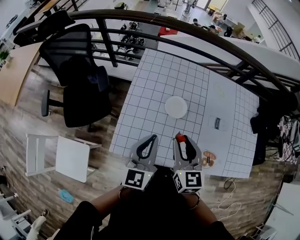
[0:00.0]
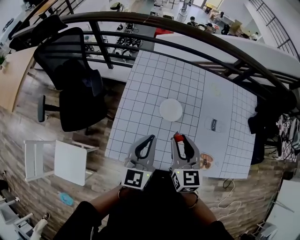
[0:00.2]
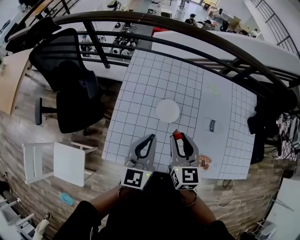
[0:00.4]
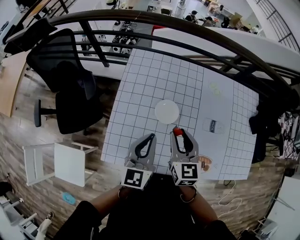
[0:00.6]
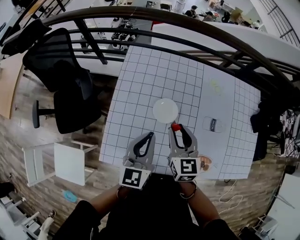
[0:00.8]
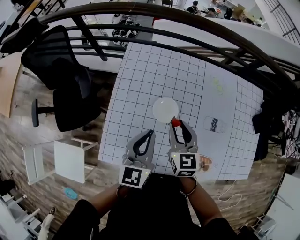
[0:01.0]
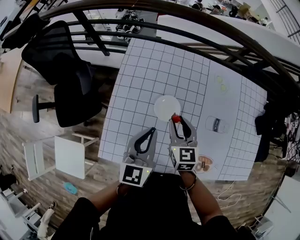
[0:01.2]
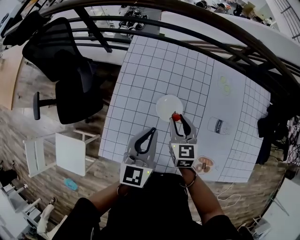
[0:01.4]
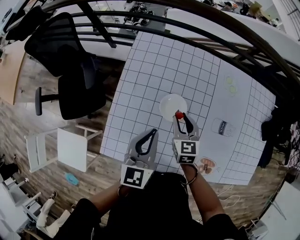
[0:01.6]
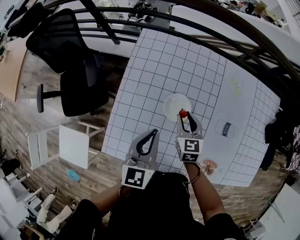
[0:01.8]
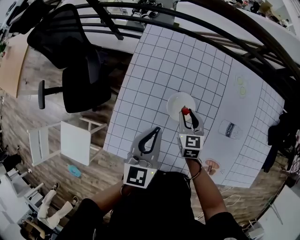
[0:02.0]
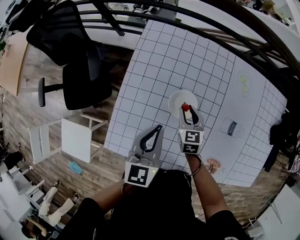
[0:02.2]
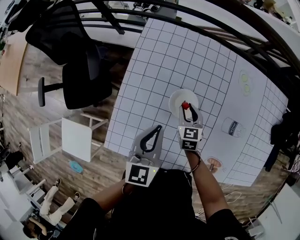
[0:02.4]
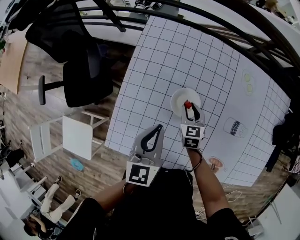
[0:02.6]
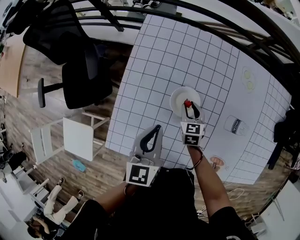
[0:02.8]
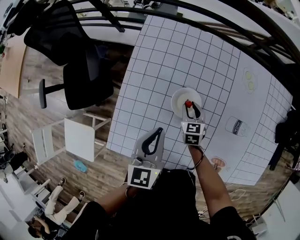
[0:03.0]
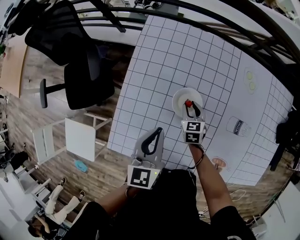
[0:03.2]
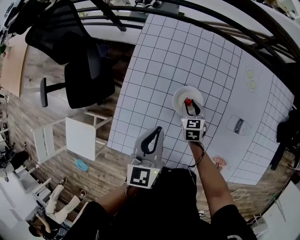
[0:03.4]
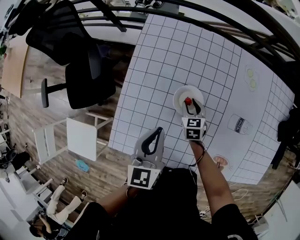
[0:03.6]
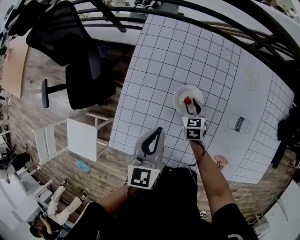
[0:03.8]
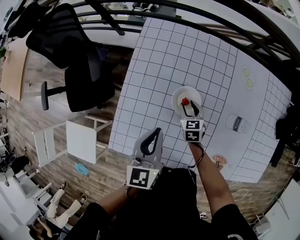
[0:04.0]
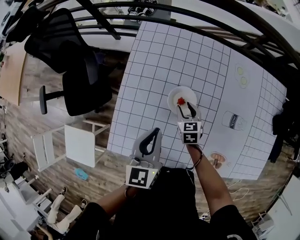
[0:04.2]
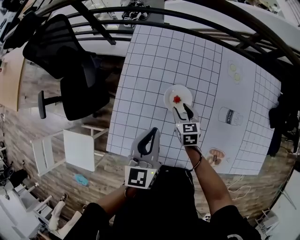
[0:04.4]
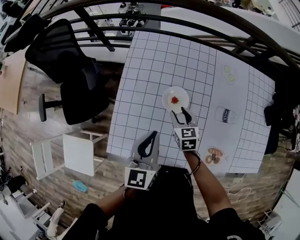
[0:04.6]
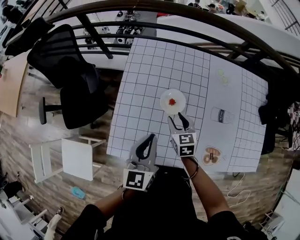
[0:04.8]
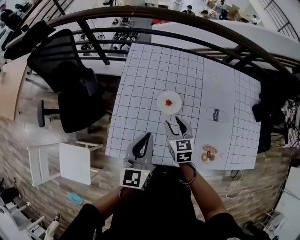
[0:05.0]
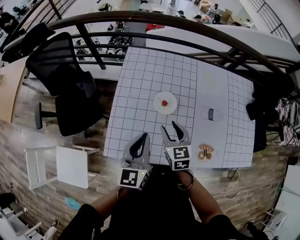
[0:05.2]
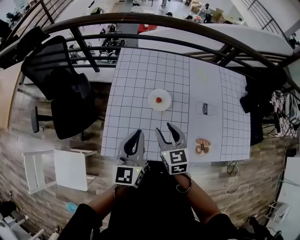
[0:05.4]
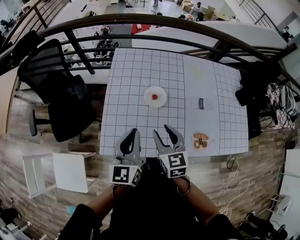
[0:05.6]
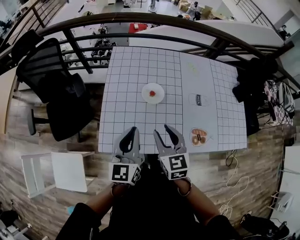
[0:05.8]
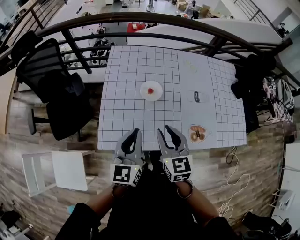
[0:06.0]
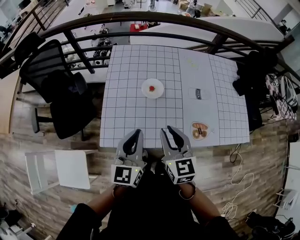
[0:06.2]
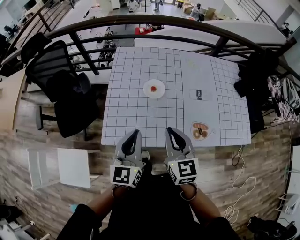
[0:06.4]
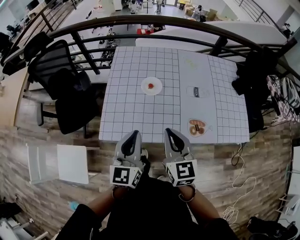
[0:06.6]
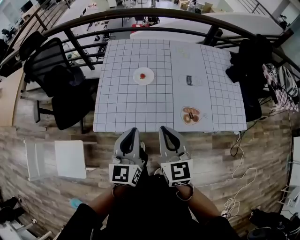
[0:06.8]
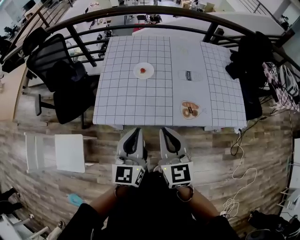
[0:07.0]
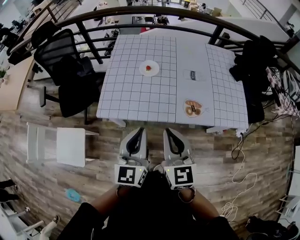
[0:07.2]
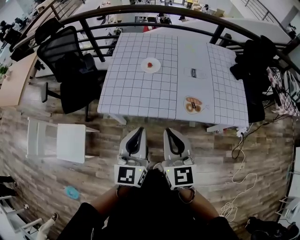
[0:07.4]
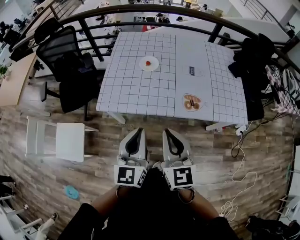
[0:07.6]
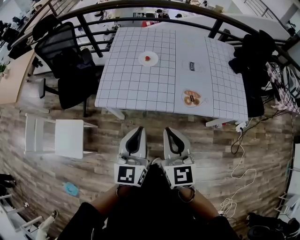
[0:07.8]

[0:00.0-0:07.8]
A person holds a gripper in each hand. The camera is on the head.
0:00.0 to 0:01.6: The right gripper goes approximately 25 cm forward and downward. Meanwhile the left gripper shifts some 15 cm forward, downward and to the right.
0:01.6 to 0:03.2: The left gripper goes some 5 cm downward; the right gripper travels downward by some 15 cm.
0:03.2 to 0:04.6: The right gripper is displaced upward and backward by some 10 cm. The left gripper travels backward and upward by roughly 10 cm.
0:04.6 to 0:06.2: The left gripper goes some 20 cm backward and upward, while the right gripper is displaced backward and upward by approximately 35 cm, rotates roughly 20 degrees, and closes its fingers.
0:06.2 to 0:07.8: Both grippers move backward, some 25 cm. The right gripper closes its fingers.

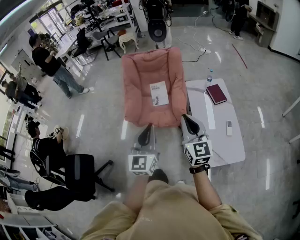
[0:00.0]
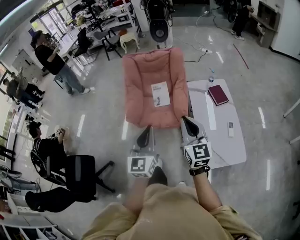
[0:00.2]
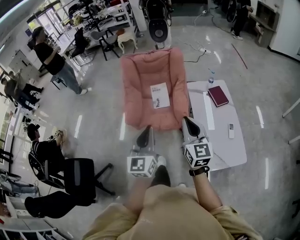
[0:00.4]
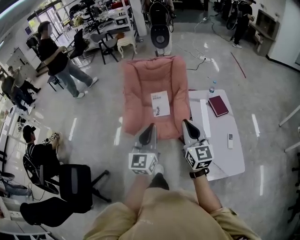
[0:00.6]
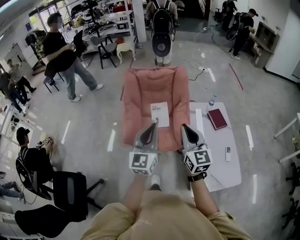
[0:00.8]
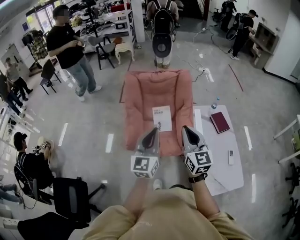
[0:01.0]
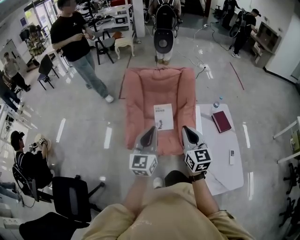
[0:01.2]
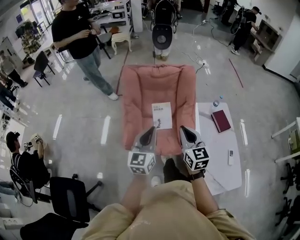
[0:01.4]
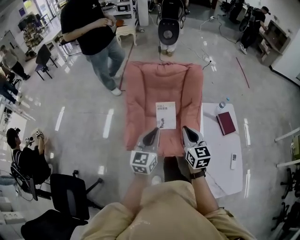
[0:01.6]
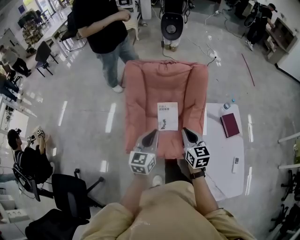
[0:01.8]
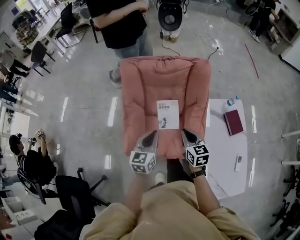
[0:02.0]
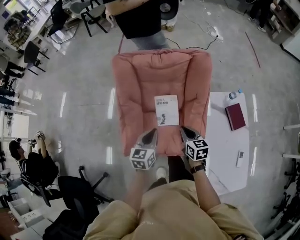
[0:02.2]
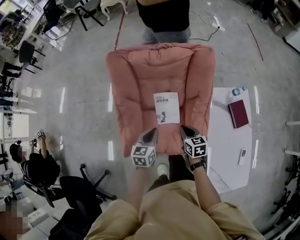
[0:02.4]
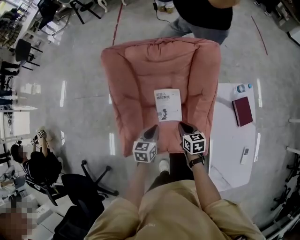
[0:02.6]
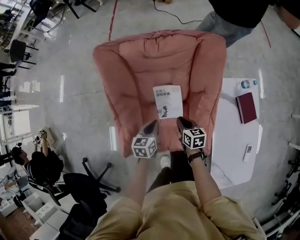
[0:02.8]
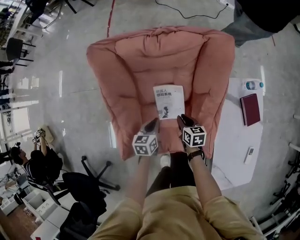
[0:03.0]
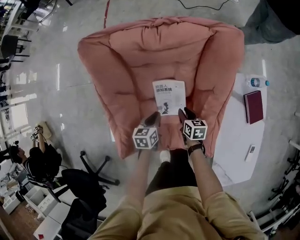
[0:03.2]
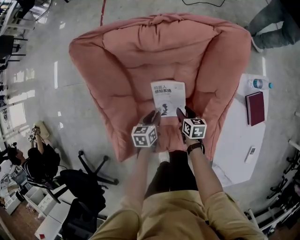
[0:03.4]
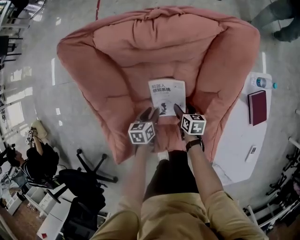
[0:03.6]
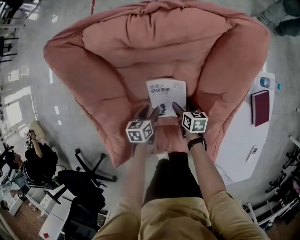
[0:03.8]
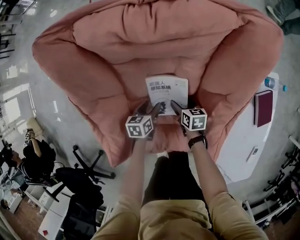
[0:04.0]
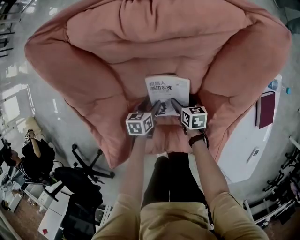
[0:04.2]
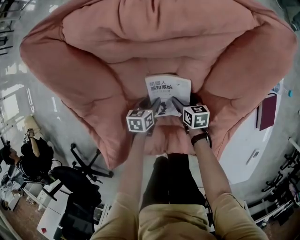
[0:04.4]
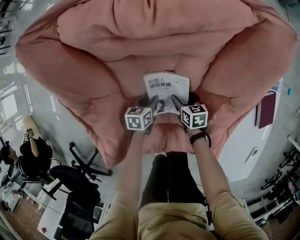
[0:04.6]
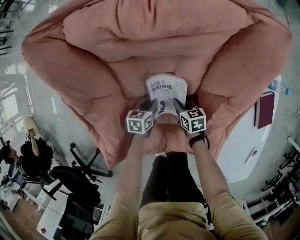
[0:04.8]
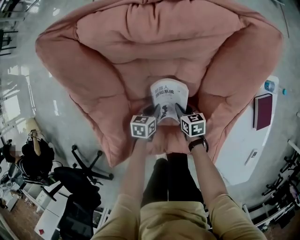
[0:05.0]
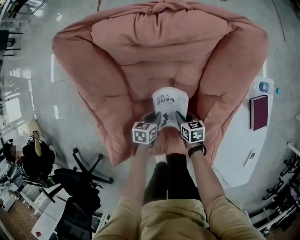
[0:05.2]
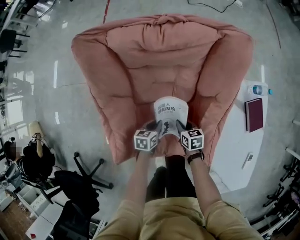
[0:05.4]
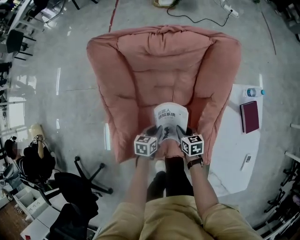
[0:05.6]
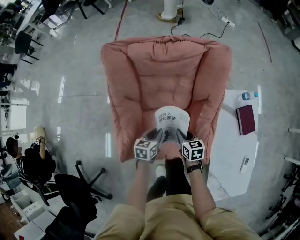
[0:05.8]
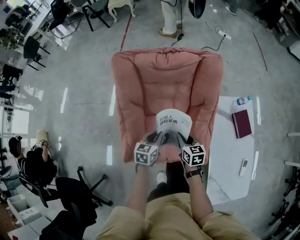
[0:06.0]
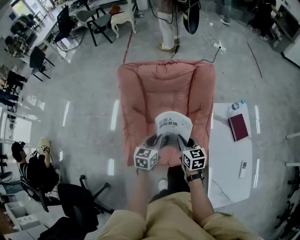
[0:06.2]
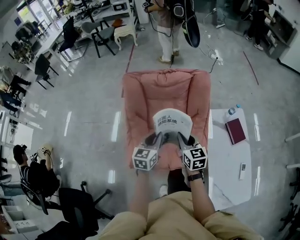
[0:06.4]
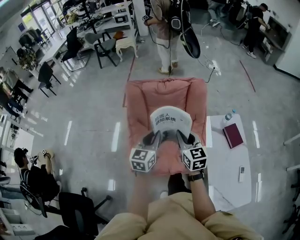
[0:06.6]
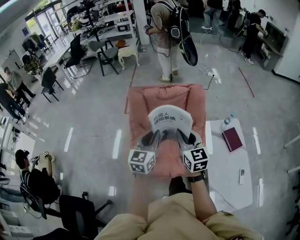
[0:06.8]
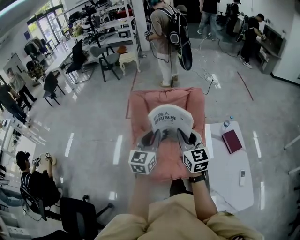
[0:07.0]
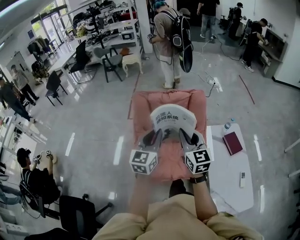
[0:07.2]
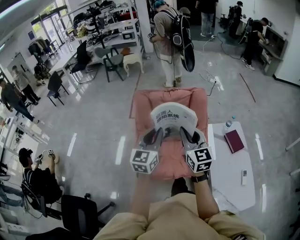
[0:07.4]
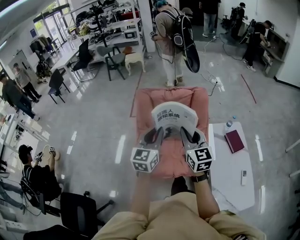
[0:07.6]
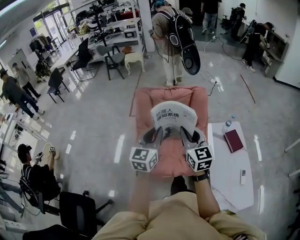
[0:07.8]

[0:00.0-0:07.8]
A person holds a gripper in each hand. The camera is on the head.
0:00.0 to 0:01.6: Both grippers move forward and to the left, approximately 40 cm.
0:01.6 to 0:03.2: Both grippers travel together downward and forward, some 50 cm. The right gripper points its fingers approximately 30 degrees further downward; the left gripper tilts its fingers some 40 degrees downward.
0:03.2 to 0:04.6: The two grippers go about 20 cm downward. The left gripper opens up.
0:04.6 to 0:06.2: The right gripper goes some 50 cm upward and backward, changes its angle by some 30 degrees, and closes its fingers. The left gripper travels upward by approximately 40 cm, swivels some 30 degrees, and closes up.
0:06.2 to 0:07.8: Both grippers move upward and backward, roughly 30 cm. The left gripper swivels some 30 degrees. The right gripper swivels some 30 degrees.

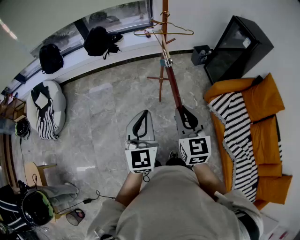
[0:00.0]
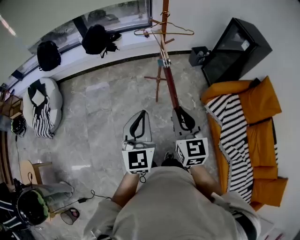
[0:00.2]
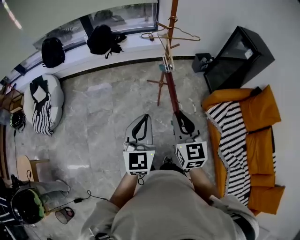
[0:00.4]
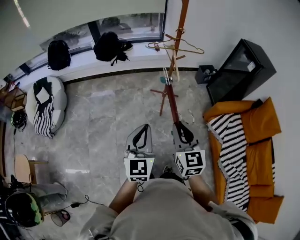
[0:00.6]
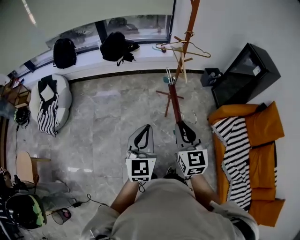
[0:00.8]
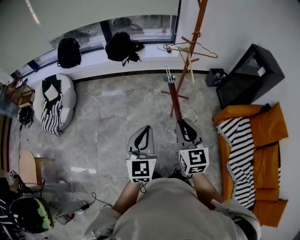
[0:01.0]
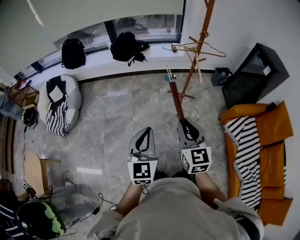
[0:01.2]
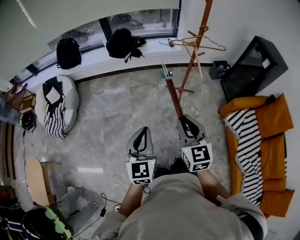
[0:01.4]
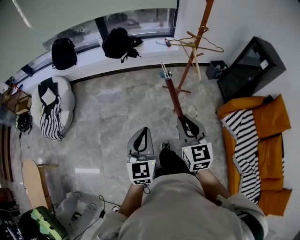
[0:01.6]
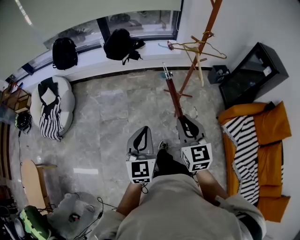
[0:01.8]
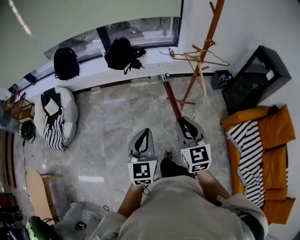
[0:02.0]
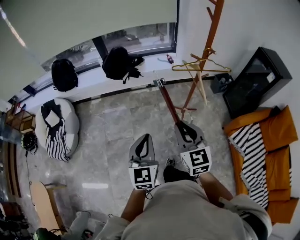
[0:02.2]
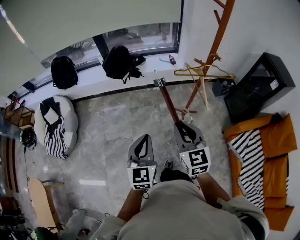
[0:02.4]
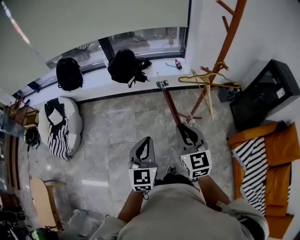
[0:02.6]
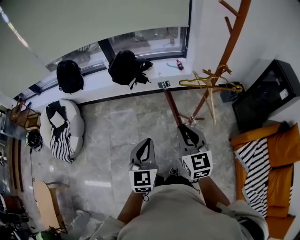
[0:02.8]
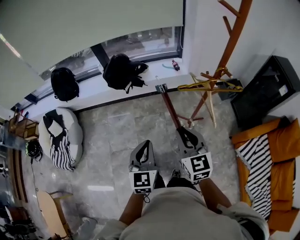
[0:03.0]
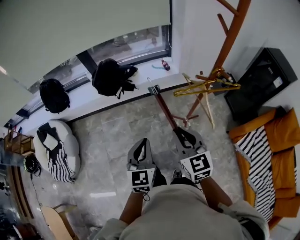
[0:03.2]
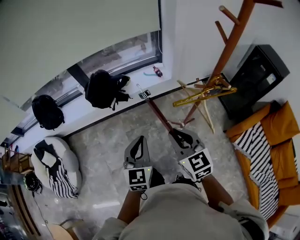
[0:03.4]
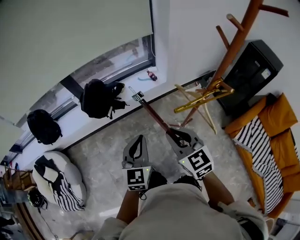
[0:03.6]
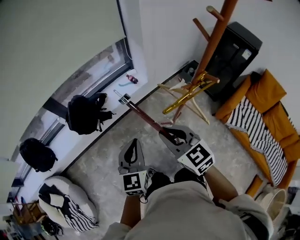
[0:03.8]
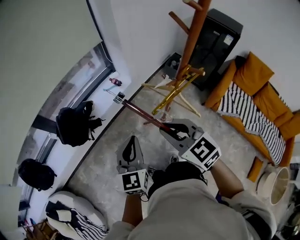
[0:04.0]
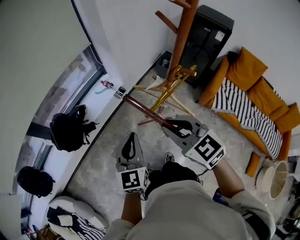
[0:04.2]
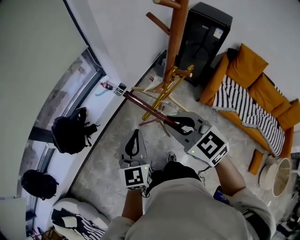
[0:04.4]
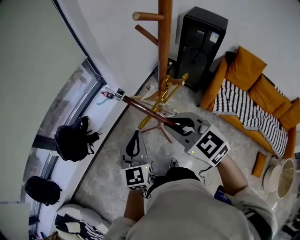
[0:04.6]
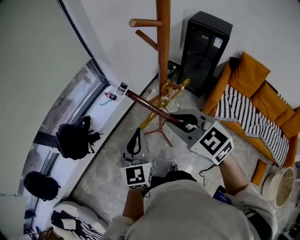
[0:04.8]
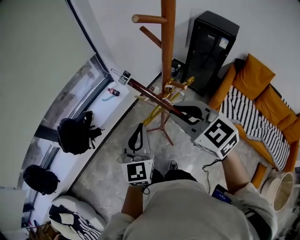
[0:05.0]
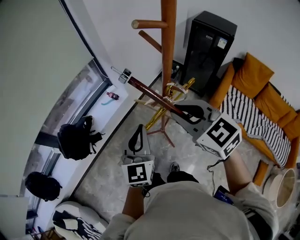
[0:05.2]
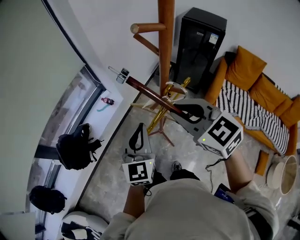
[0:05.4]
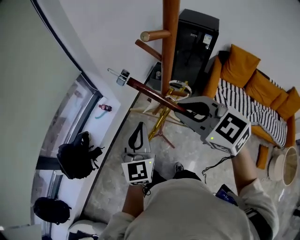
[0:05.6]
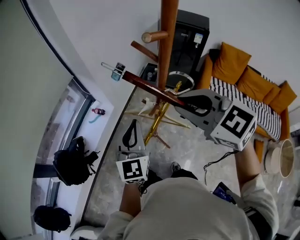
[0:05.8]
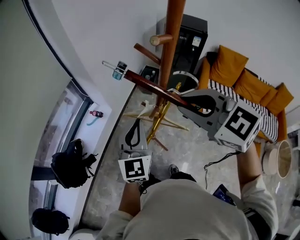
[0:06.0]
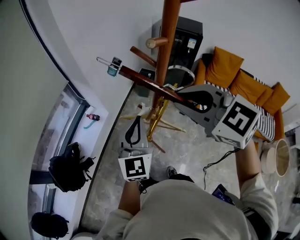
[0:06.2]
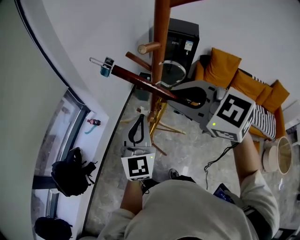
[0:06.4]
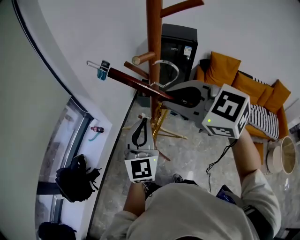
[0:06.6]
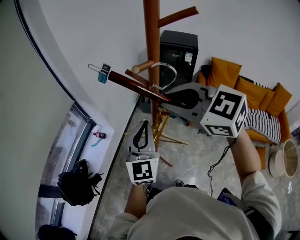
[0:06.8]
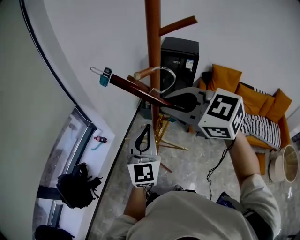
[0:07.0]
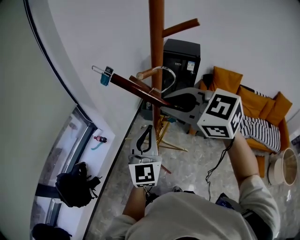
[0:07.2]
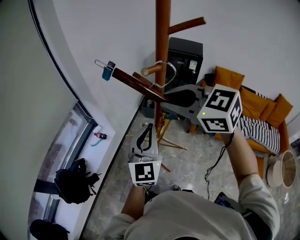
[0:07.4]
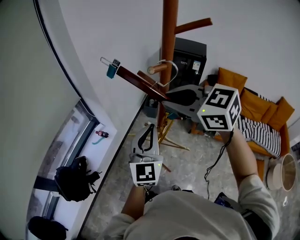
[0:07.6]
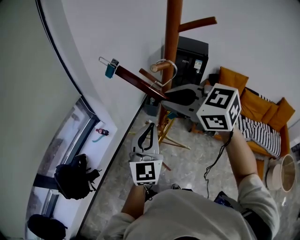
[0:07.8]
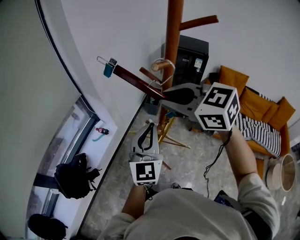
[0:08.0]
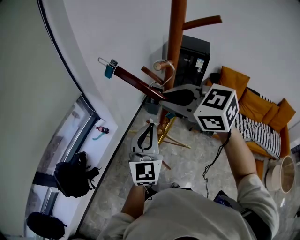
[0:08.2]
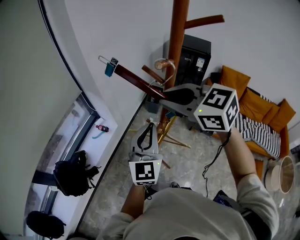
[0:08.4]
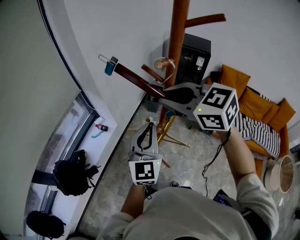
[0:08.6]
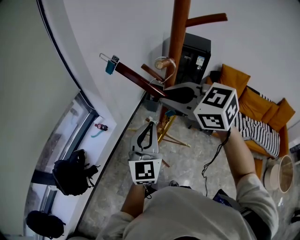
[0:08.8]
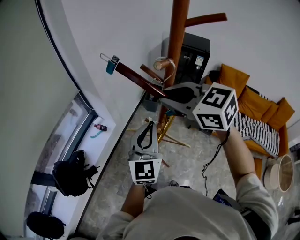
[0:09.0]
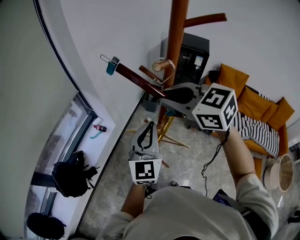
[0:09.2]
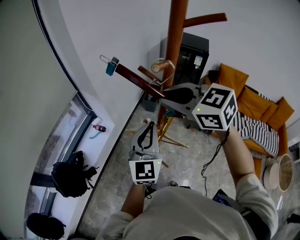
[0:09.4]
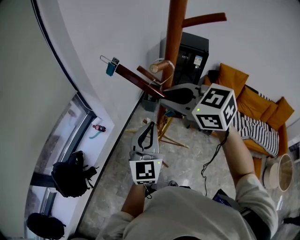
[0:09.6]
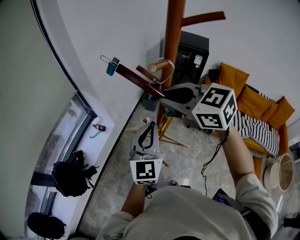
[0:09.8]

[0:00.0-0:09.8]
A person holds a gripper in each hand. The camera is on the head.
0:00.0 to 0:01.4: Both grippers move to the left, roughly 20 cm.
0:01.4 to 0:02.8: Both grippers travel together forward, roughly 30 cm.
0:02.8 to 0:04.2: The right gripper changes place by some 20 cm. The left gripper moves about 30 cm, and turns by about 40 degrees.
0:04.2 to 0:05.6: The left gripper goes roughly 15 cm forward, to the right and upward, while the right gripper shifts roughly 20 cm upward, forward and to the right.
0:05.6 to 0:07.0: The left gripper shifts roughly 10 cm upward and to the right; the right gripper travels upward by approximately 10 cm.
0:07.0 to 0:08.4: The right gripper ends up some 5 cm from where it was.
0:08.4 to 0:09.8: The grippers stay close to where they were, moving slightly.
